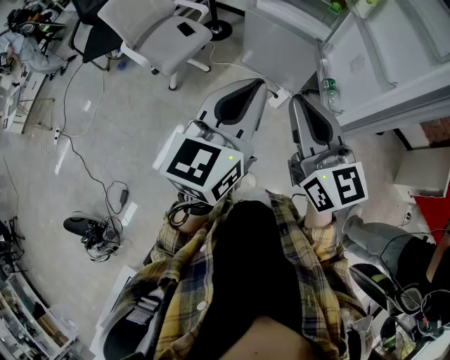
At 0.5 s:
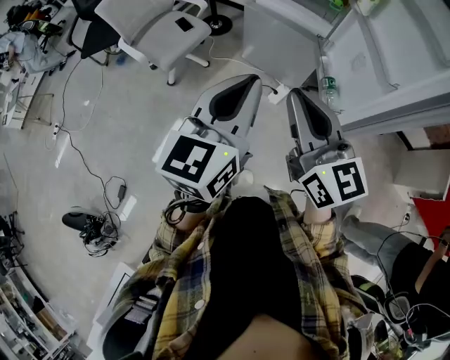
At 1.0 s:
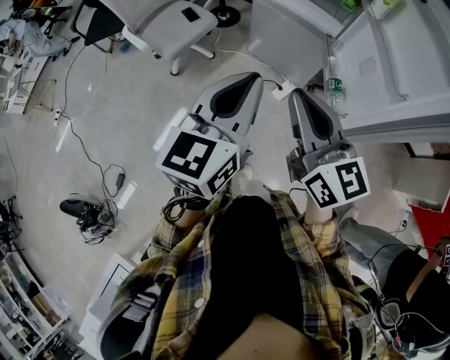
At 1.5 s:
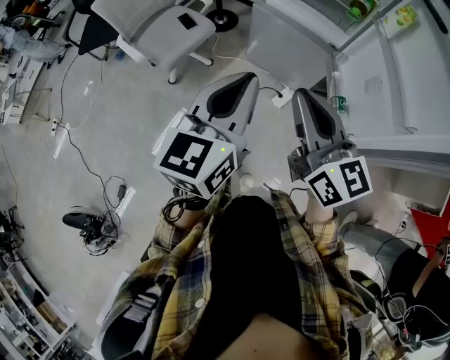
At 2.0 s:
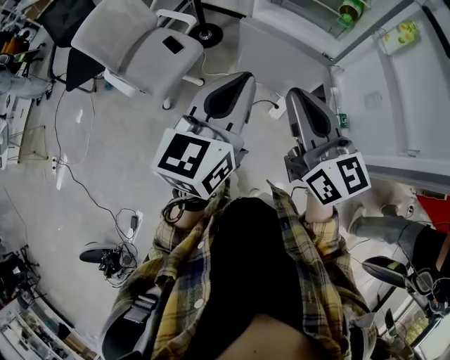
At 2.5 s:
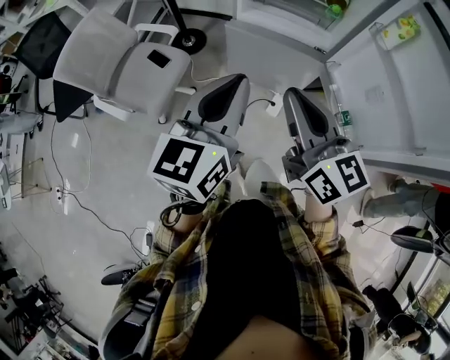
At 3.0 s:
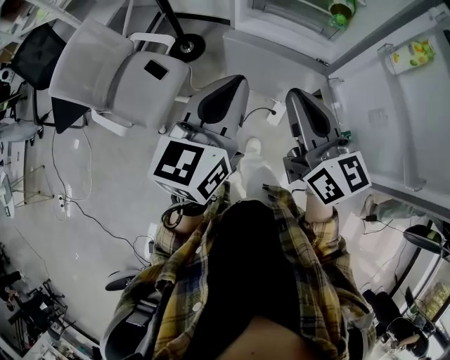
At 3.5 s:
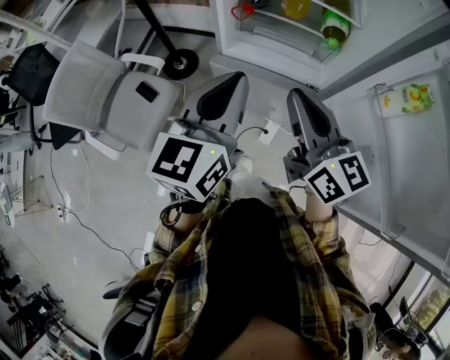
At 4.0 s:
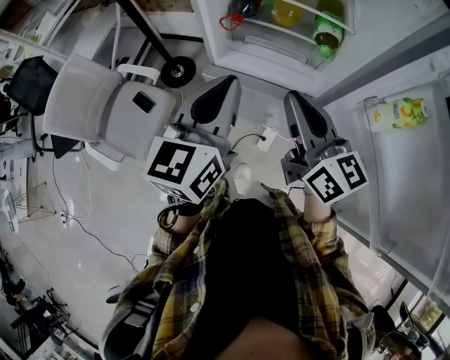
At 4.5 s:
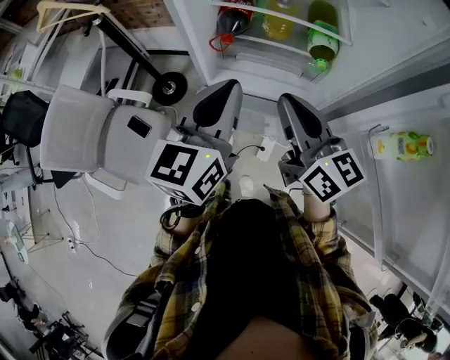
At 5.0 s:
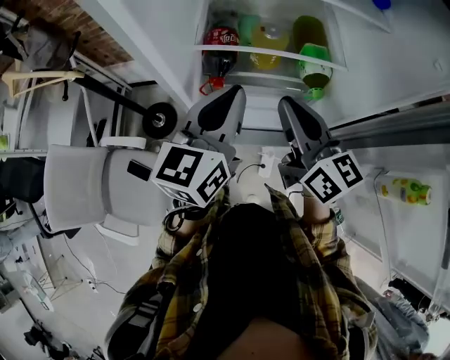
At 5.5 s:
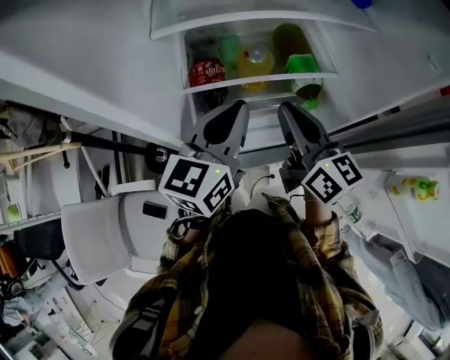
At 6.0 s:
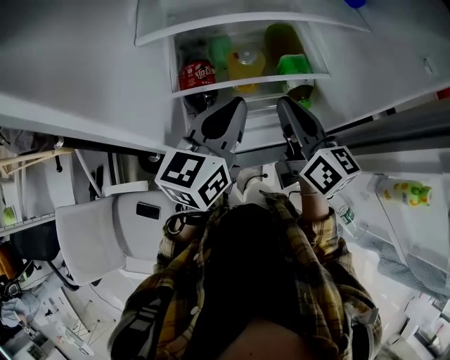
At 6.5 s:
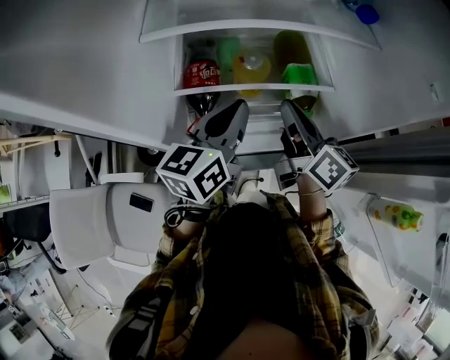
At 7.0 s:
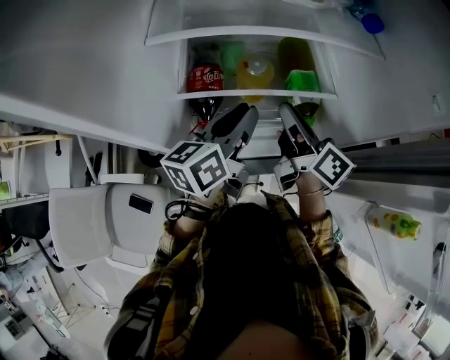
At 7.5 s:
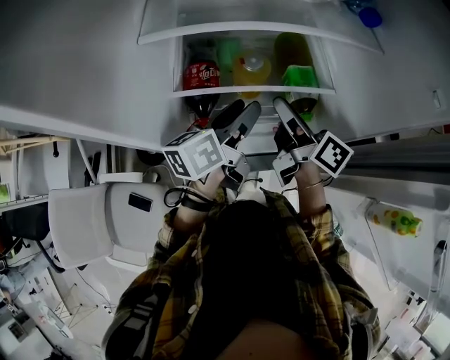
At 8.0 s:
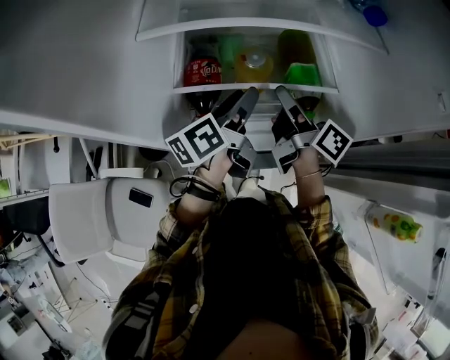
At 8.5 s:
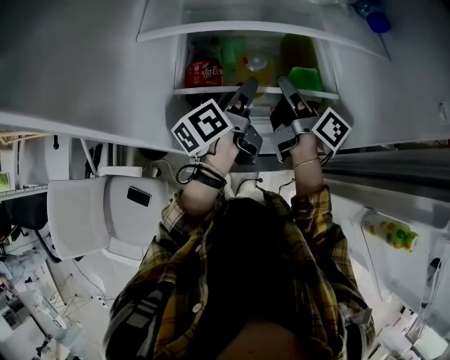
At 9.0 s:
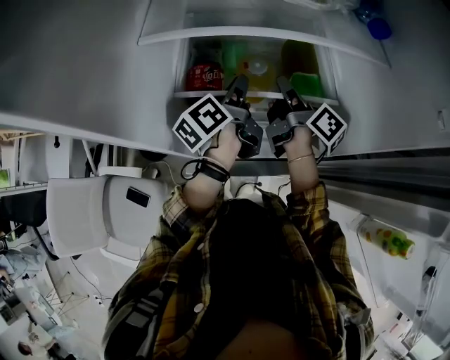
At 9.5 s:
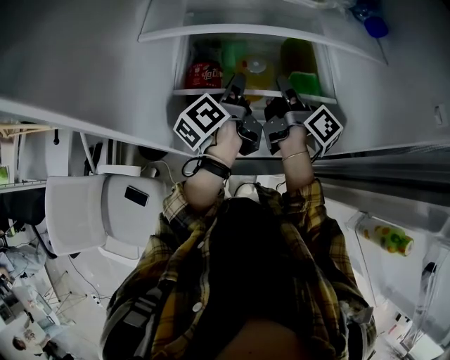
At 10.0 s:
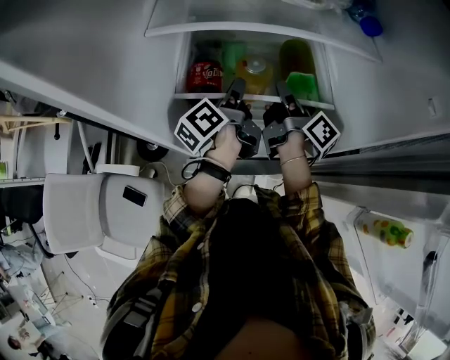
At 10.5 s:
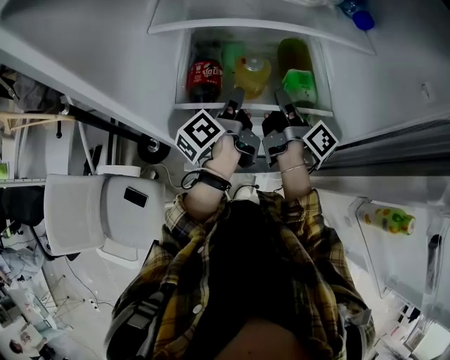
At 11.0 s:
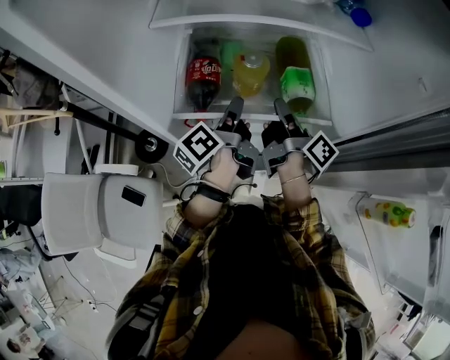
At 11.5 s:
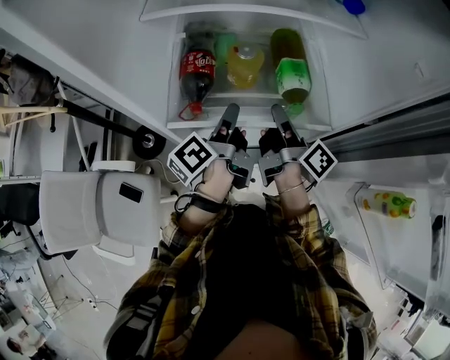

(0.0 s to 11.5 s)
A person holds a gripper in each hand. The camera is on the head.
0.0 s - 2.0 s: The grippers both shift forward by approximately 25 cm.
2.0 s - 4.0 s: Both grippers travel together forward, approximately 30 cm.
4.0 s - 6.0 s: The right gripper changes place by about 30 cm, and swivels approximately 30 degrees. The left gripper changes place by some 30 cm, and turns by approximately 30 degrees.
6.0 s - 7.5 s: The left gripper moves downward, about 5 cm, swivels approximately 30 degrees, and opens; the right gripper changes place by about 5 cm, swivels roughly 30 degrees, and opens.
7.5 s - 9.5 s: The grippers both shift forward by some 5 cm. The right gripper swivels about 20 degrees, and closes; the left gripper turns by some 30 degrees, and closes.
9.5 s - 11.5 s: Both grippers travel together backward, roughly 10 cm.

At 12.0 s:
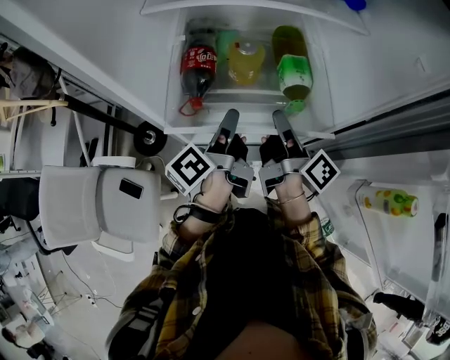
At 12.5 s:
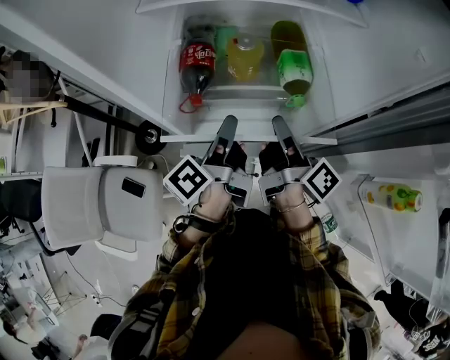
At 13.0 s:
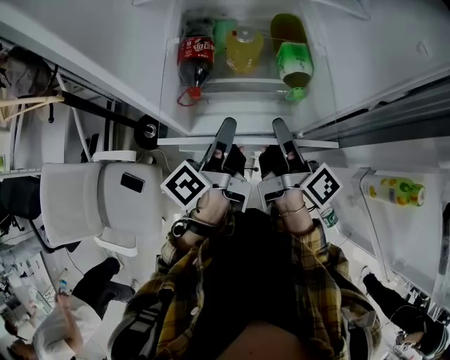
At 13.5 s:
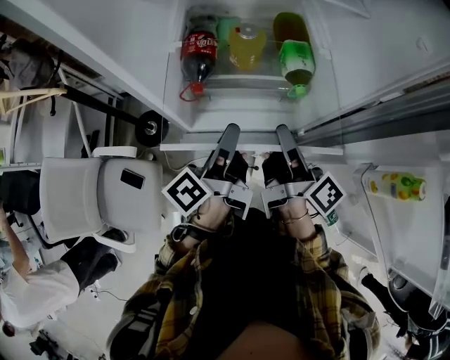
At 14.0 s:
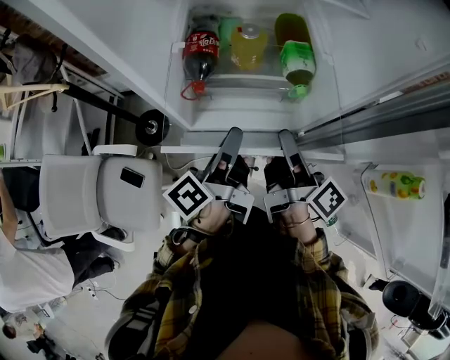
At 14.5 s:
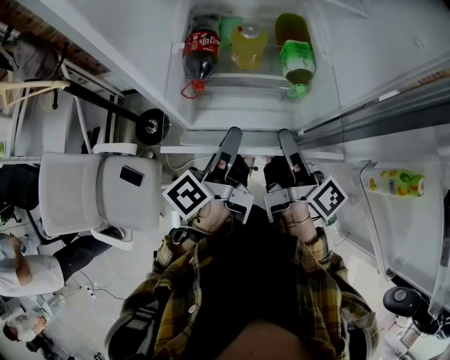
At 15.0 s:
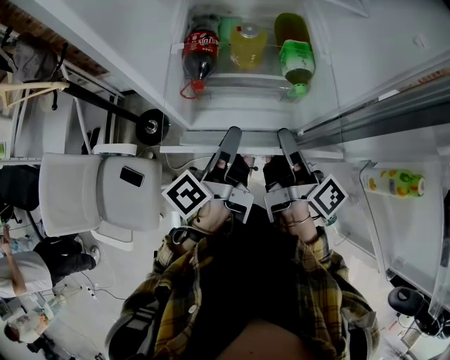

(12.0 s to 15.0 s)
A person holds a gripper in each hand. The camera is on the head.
12.0 s - 13.5 s: The two grippers go roughly 10 cm backward.
13.5 s - 15.0 s: There are only small adjustments of the grippers.

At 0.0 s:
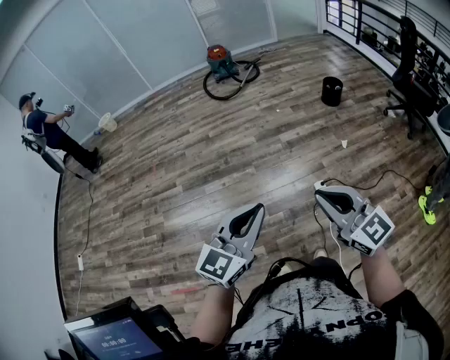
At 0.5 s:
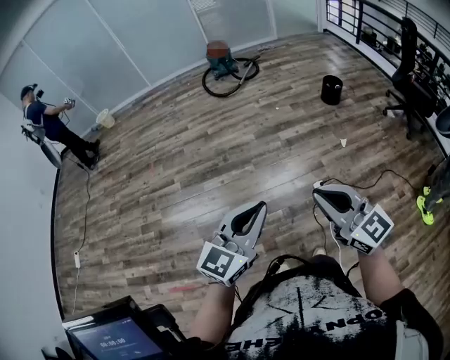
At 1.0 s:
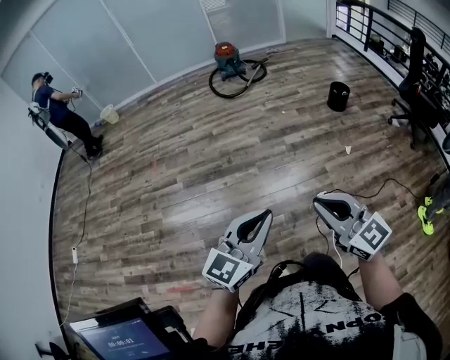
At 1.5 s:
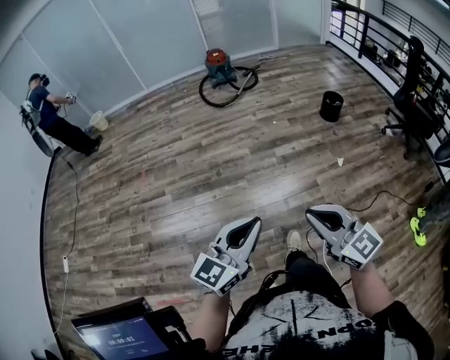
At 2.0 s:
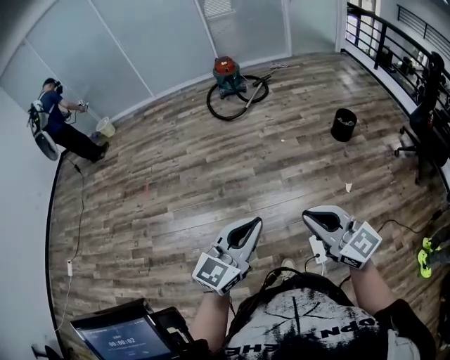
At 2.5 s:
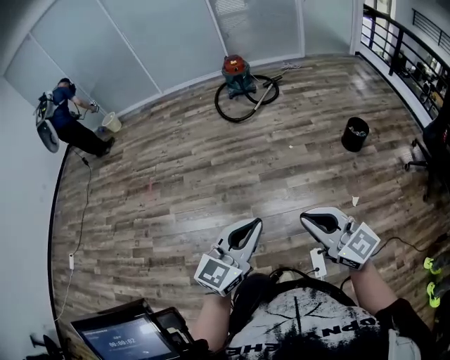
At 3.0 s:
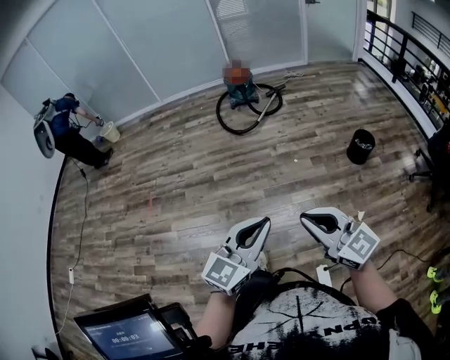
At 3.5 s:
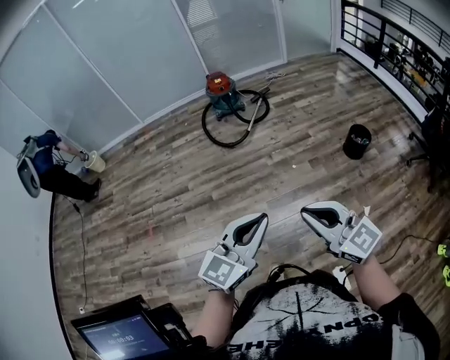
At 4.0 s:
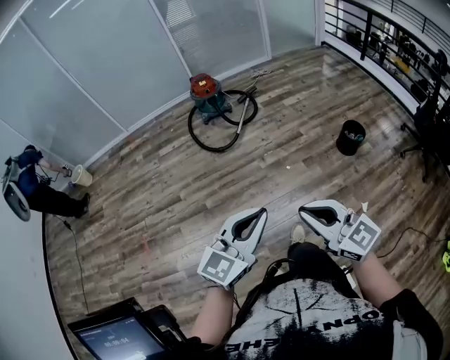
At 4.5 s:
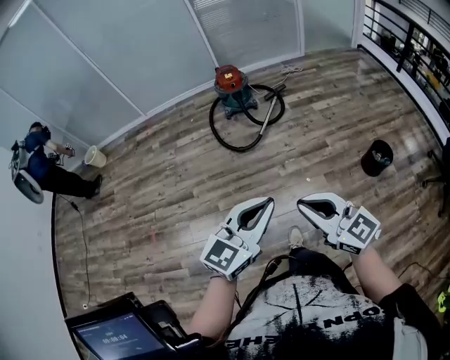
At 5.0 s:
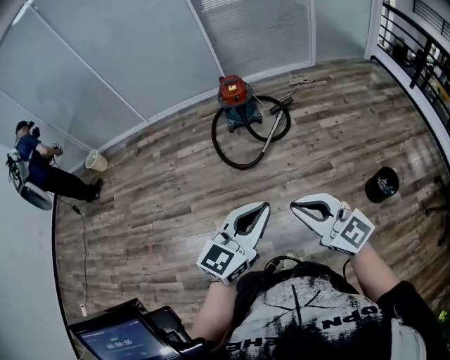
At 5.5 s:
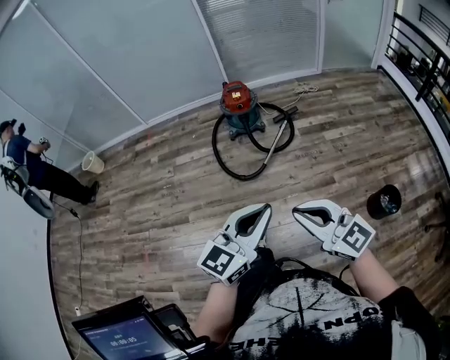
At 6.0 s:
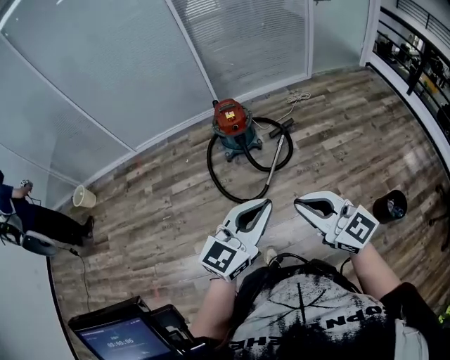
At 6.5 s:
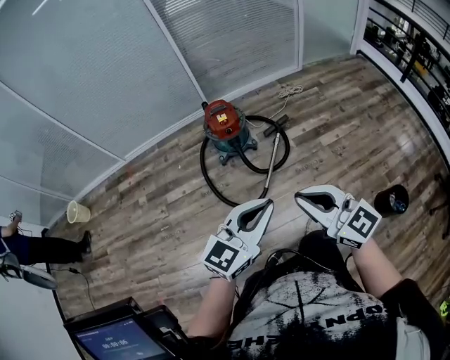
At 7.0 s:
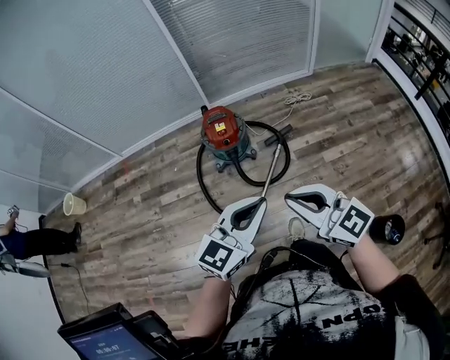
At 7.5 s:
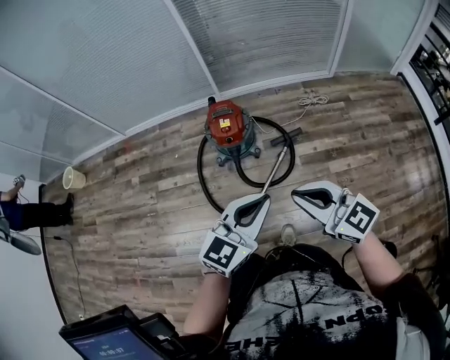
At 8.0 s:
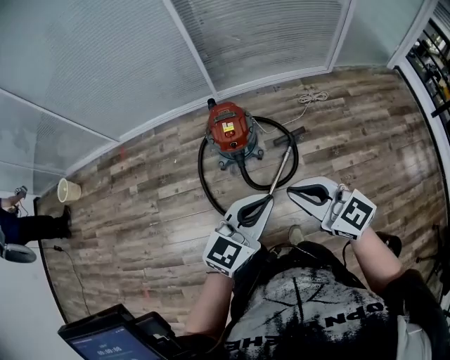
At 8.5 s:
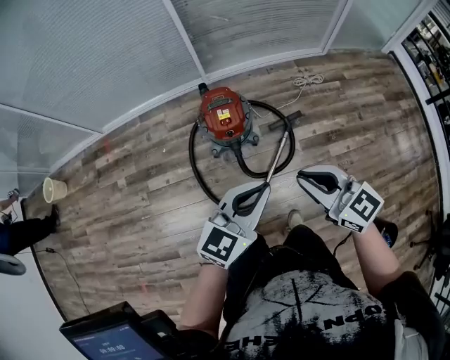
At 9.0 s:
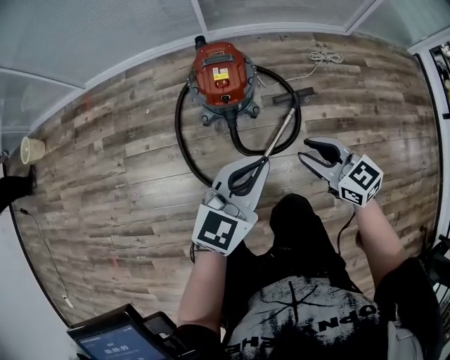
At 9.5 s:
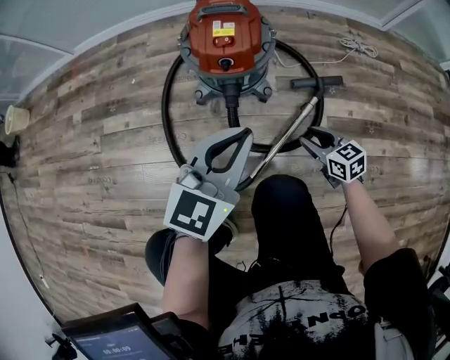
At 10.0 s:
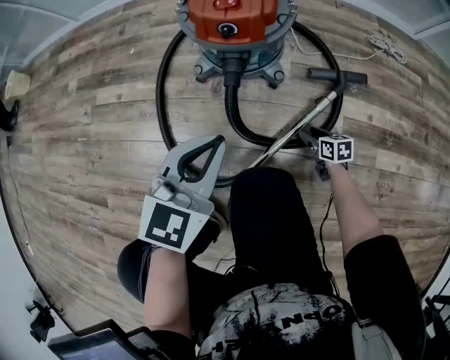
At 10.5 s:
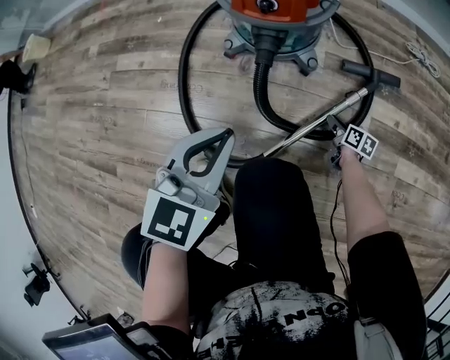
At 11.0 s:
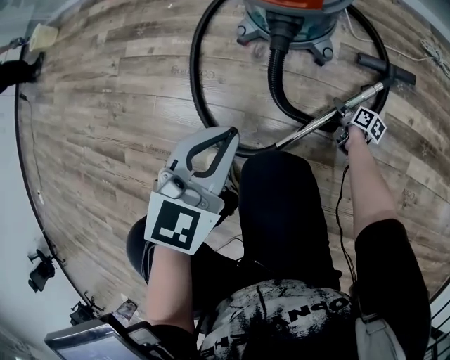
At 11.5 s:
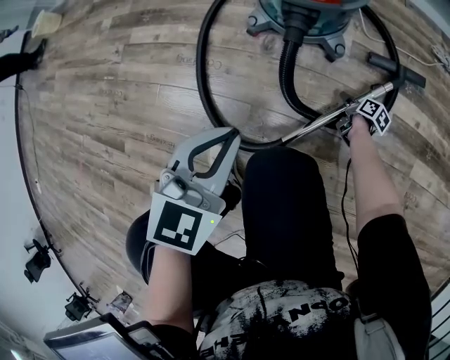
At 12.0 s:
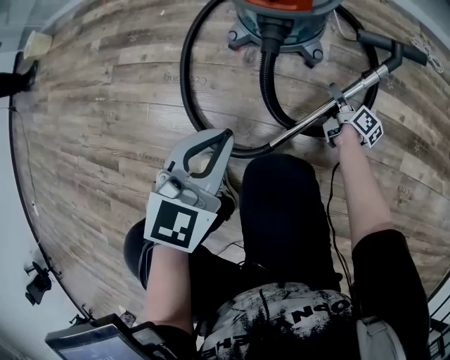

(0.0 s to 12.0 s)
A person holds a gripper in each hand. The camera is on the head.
0.0 s - 2.0 s: Both grippers travel together forward, approximately 25 cm.
2.0 s - 4.0 s: The two grippers travel together, forward, roughly 40 cm.
4.0 s - 6.0 s: The two grippers travel together, forward, approximately 60 cm.
6.0 s - 8.0 s: The pair of grippers is taken forward, roughly 40 cm.
8.0 s - 10.0 s: The left gripper is displaced downward by approximately 50 cm, and changes its angle by approximately 30 degrees, while the right gripper shifts some 90 cm downward, points its fingers roughly 40 degrees further downward, and opens its fingers.
10.0 s - 12.0 s: The right gripper travels forward by approximately 10 cm, moves some 10 cm downward and comes back, and turns by some 50 degrees; the left gripper heads backward, covering about 5 cm.
